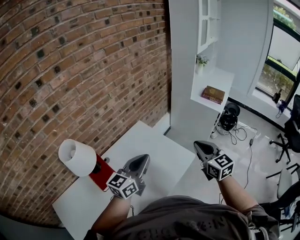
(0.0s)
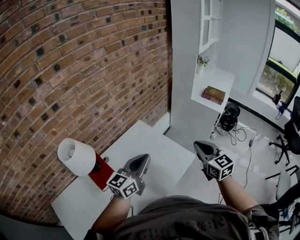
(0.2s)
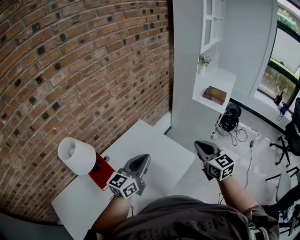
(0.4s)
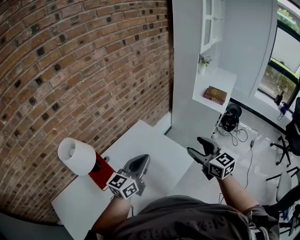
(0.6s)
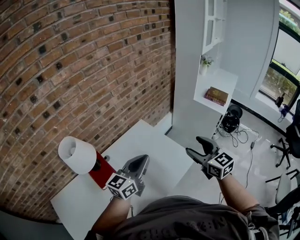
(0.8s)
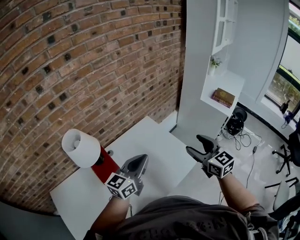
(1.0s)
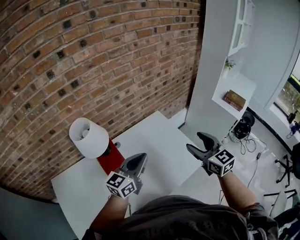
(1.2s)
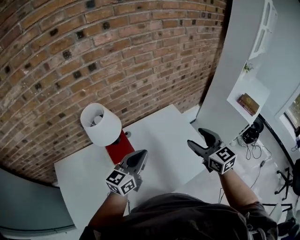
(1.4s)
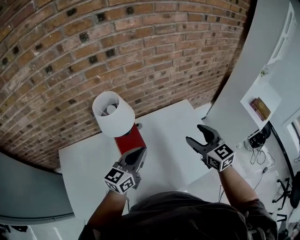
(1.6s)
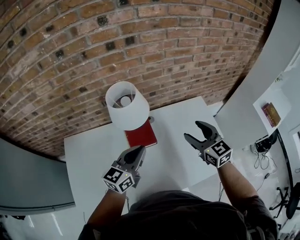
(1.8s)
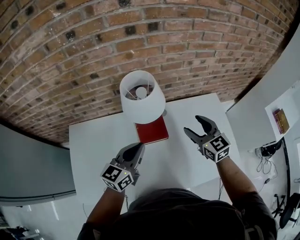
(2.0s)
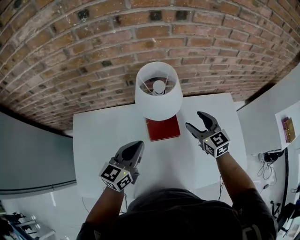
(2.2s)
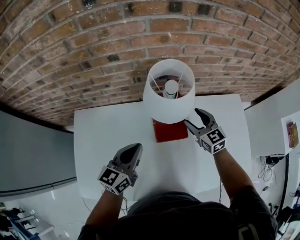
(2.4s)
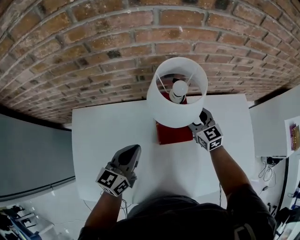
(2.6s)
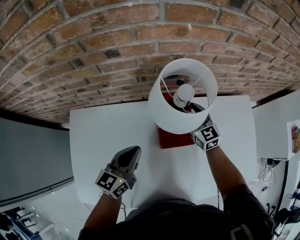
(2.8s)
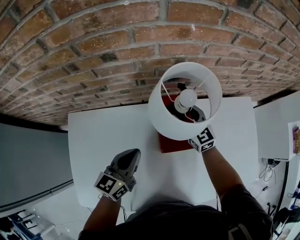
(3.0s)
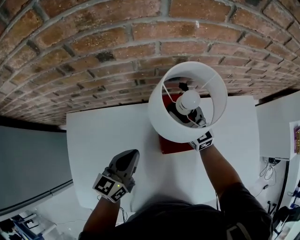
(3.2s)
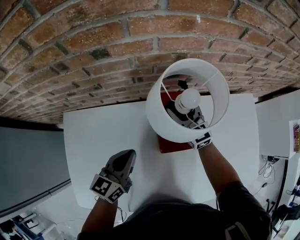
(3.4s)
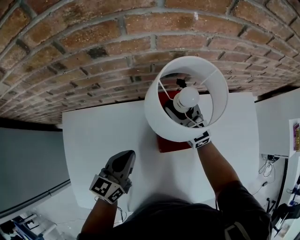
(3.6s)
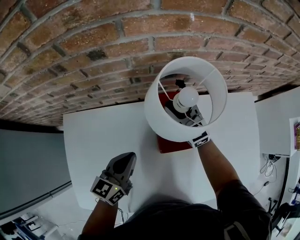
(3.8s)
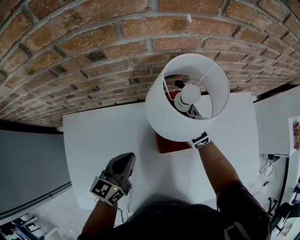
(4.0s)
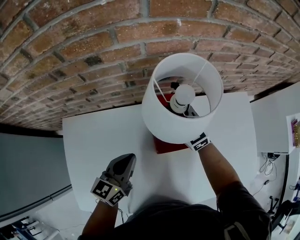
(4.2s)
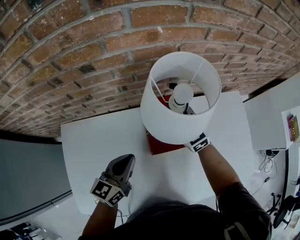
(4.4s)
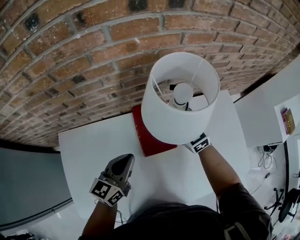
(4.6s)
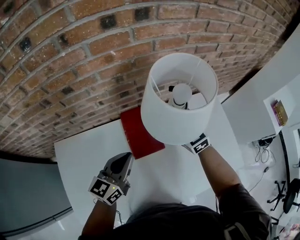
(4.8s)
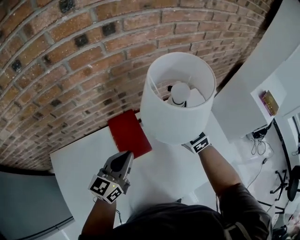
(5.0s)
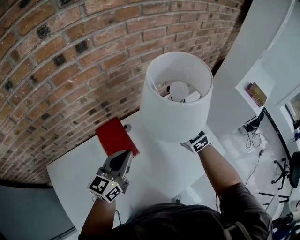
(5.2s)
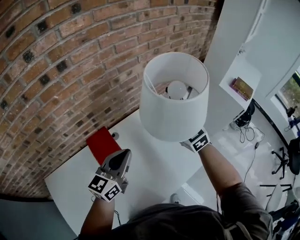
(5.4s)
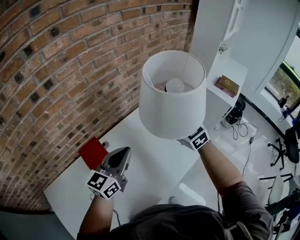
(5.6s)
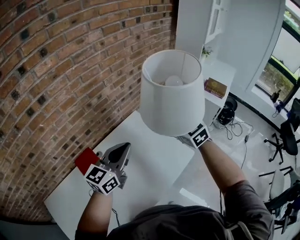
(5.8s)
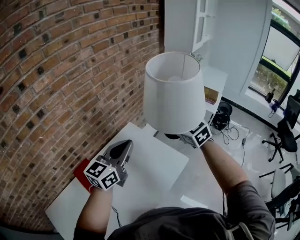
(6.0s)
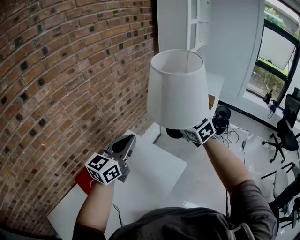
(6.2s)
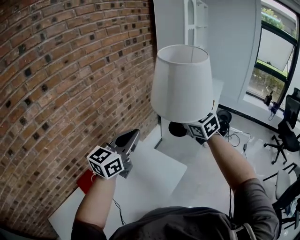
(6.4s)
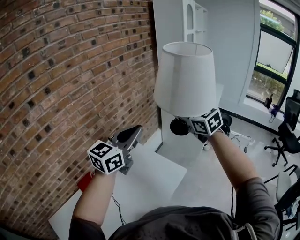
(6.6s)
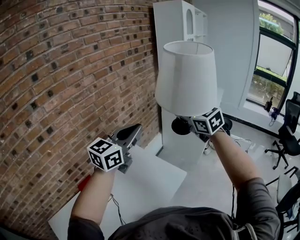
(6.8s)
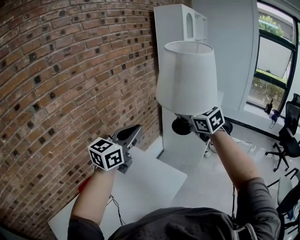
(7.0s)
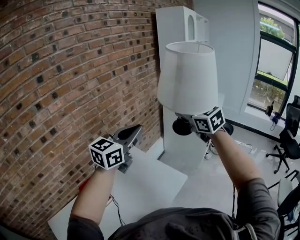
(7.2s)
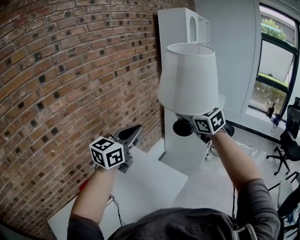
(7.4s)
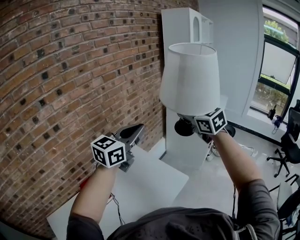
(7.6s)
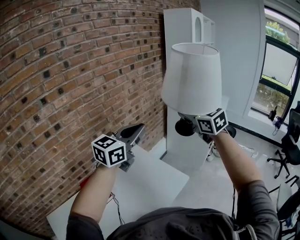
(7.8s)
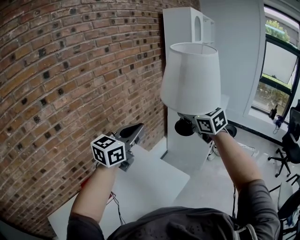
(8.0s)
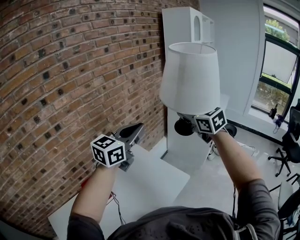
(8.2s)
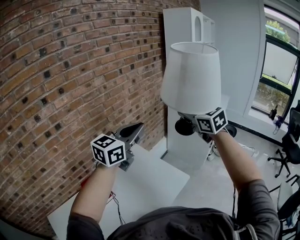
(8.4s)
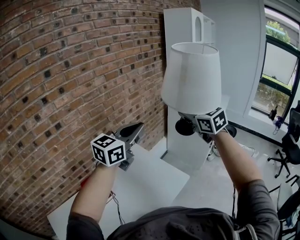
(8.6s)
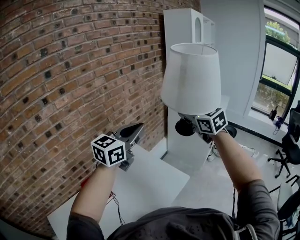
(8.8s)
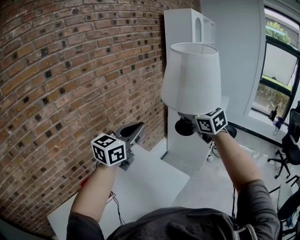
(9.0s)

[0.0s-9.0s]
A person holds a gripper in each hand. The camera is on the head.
0.0s to 1.6s: The right gripper moves some 25 cm, swivels roughly 30 degrees, and opens up, while the left gripper shifts by some 20 cm, and rotates some 30 degrees.
1.6s to 3.0s: The left gripper goes some 30 cm to the left and downward, and swivels some 20 degrees. Meanwhile the right gripper goes approximately 50 cm to the left, forward and downward.
3.0s to 4.4s: The right gripper is displaced upward by approximately 5 cm, and closes up.
4.4s to 6.0s: The two grippers travel together, about 50 cm. The left gripper rotates approximately 50 degrees. Meanwhile the right gripper swivels about 40 degrees.
6.0s to 7.6s: The grippers both shift upward and to the right by approximately 20 cm.
7.6s to 9.0s: Both grippers stay put.

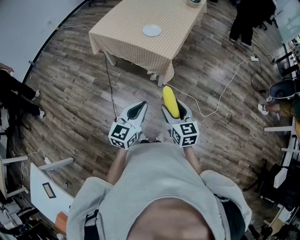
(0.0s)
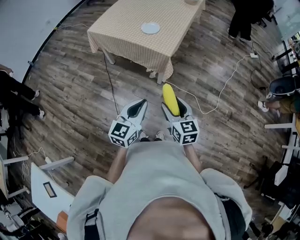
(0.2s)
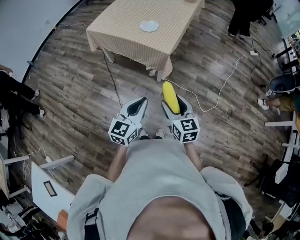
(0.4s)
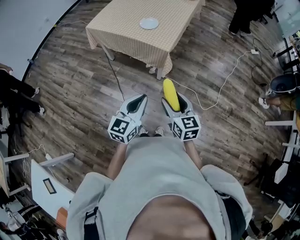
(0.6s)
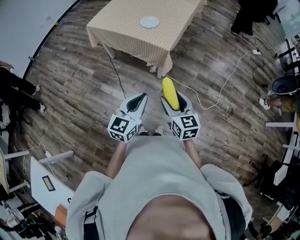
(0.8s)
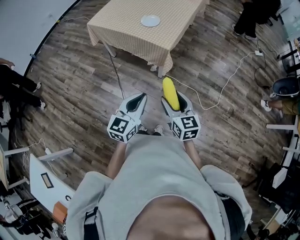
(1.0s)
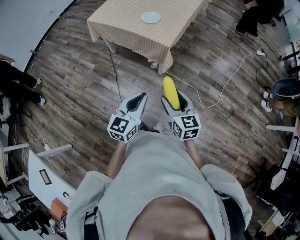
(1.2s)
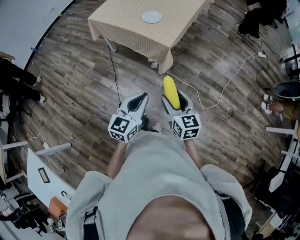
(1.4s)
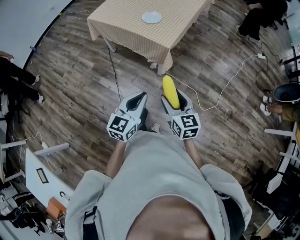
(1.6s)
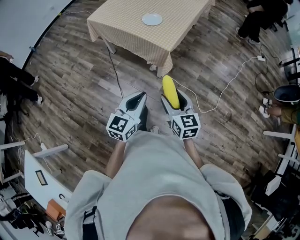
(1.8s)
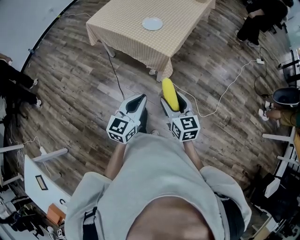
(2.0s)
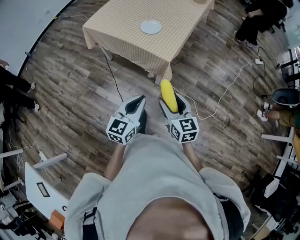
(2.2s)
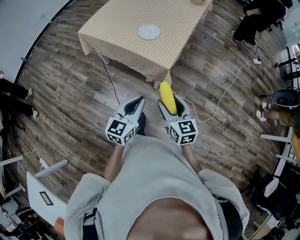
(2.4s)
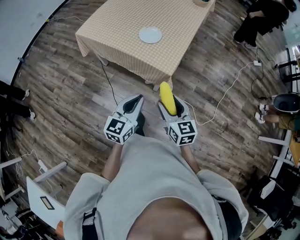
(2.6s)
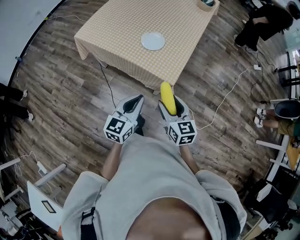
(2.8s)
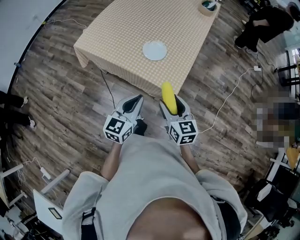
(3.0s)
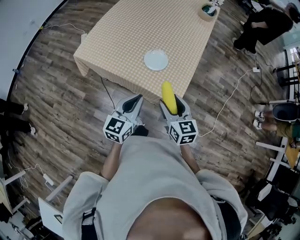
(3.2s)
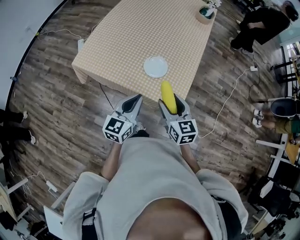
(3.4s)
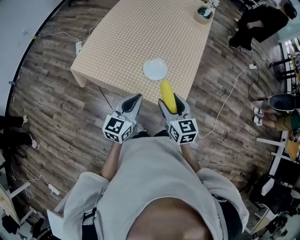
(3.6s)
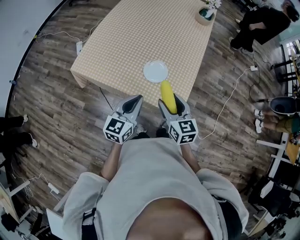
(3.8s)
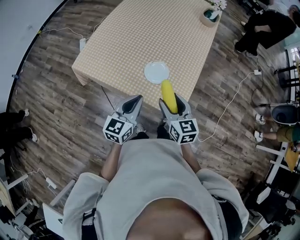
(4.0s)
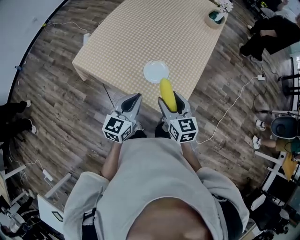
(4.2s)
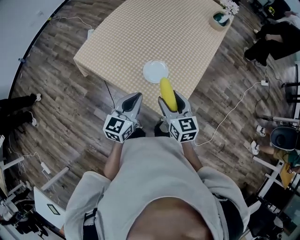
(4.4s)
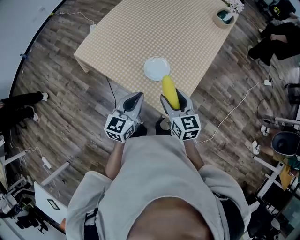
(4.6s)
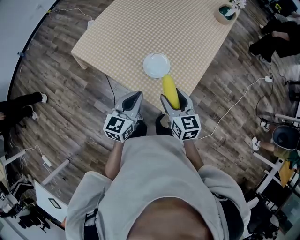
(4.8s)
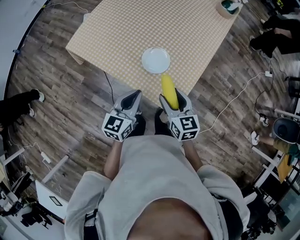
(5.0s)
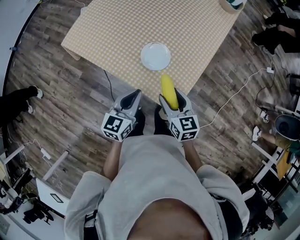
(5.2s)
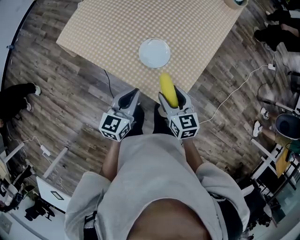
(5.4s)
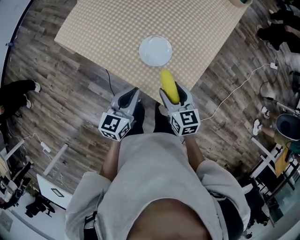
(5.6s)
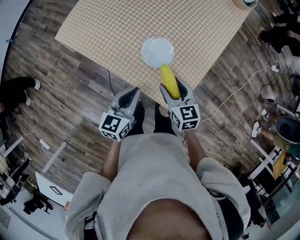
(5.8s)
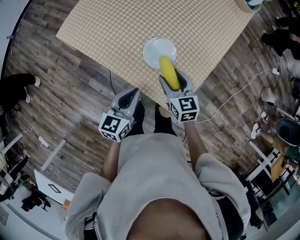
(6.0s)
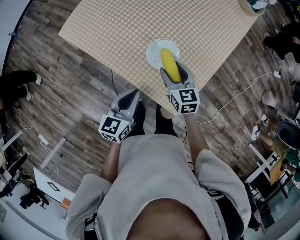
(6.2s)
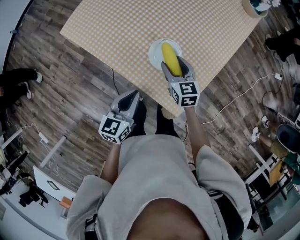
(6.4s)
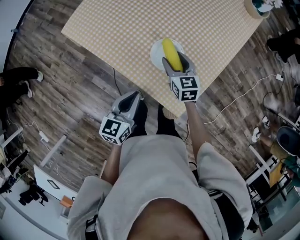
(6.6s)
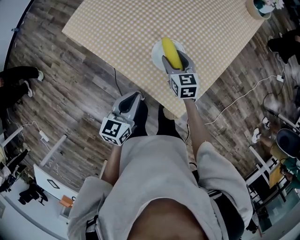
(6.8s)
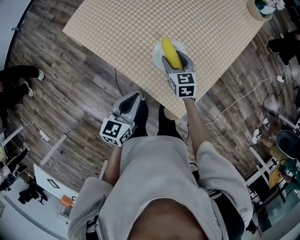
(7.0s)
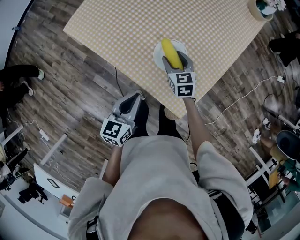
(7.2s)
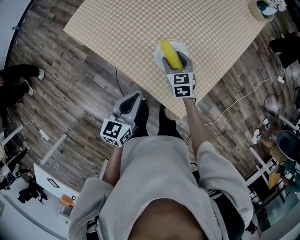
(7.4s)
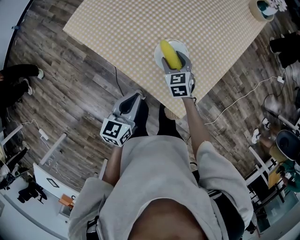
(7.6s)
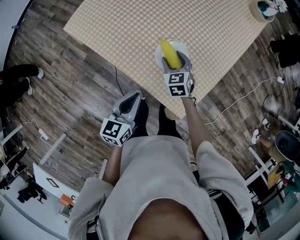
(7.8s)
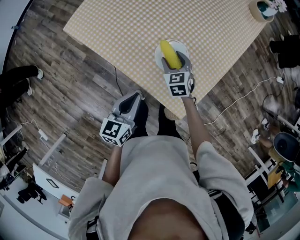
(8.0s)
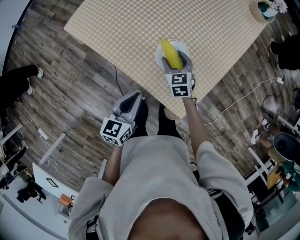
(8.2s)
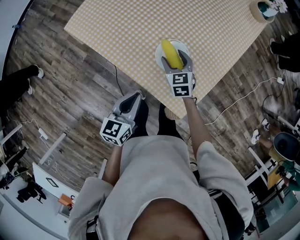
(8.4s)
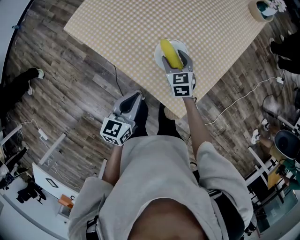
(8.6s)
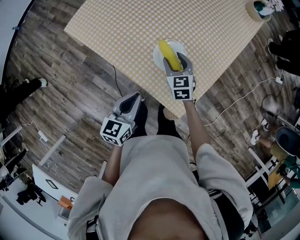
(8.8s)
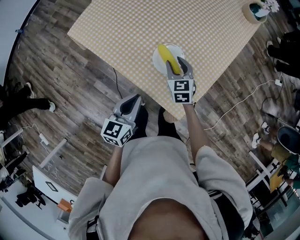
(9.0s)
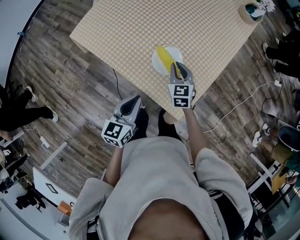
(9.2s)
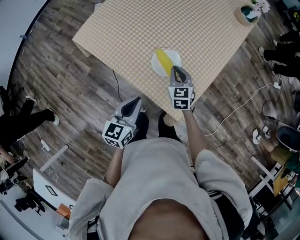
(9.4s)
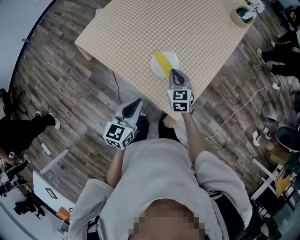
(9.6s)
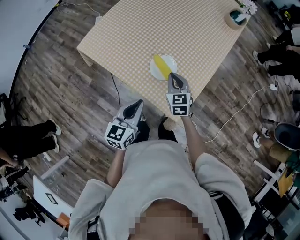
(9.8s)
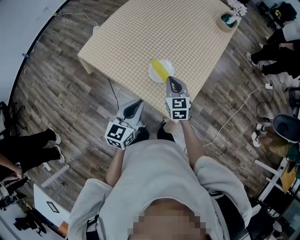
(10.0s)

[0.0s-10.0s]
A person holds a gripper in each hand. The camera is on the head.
0.0s to 1.4s: The right gripper moves about 5 cm; the left gripper travels to the right by about 5 cm.
1.4s to 2.8s: Both grippers move forward, approximately 25 cm.
2.8s to 4.2s: The grippers both shift forward by roughly 25 cm.
4.2s to 5.8s: The two grippers go roughly 10 cm downward.
5.8s to 7.2s: The right gripper moves forward and downward, about 15 cm.
7.2s to 8.6s: The grippers move only a little.
8.6s to 10.0s: The left gripper is displaced upward by approximately 10 cm, while the right gripper is displaced upward and backward by some 15 cm, and closes up.

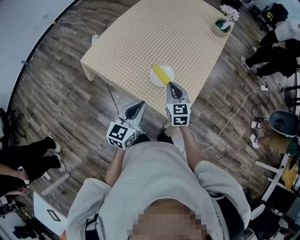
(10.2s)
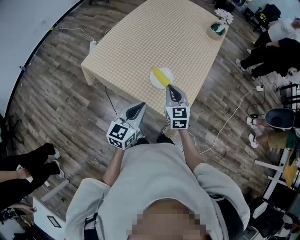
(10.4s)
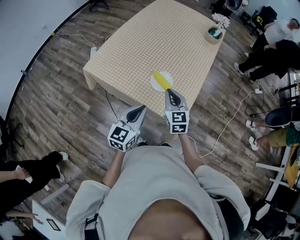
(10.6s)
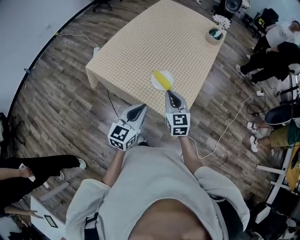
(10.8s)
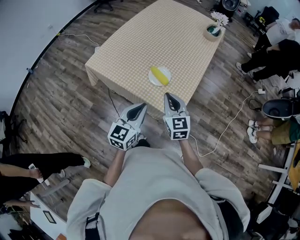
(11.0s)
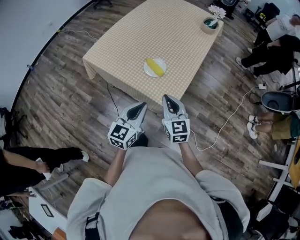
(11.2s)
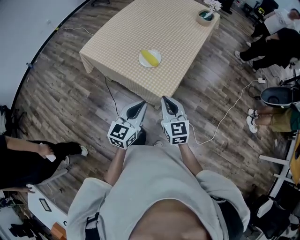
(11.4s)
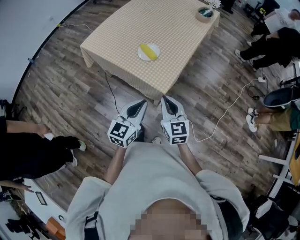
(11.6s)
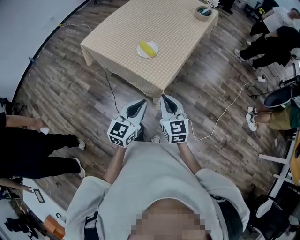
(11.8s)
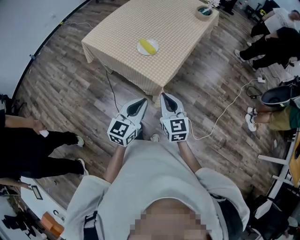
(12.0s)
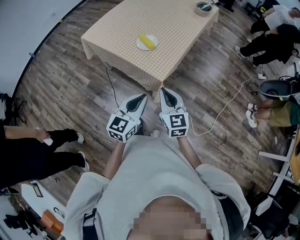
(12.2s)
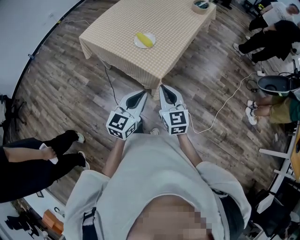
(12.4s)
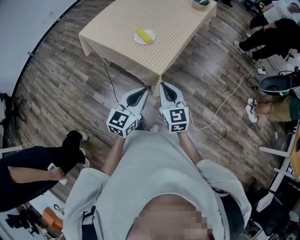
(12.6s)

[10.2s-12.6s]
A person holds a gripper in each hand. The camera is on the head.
10.2s to 11.4s: The grippers both shift backward and to the right by roughly 20 cm.
11.4s to 12.6s: The right gripper moves backward, about 10 cm; the left gripper travels backward and to the right by some 10 cm.

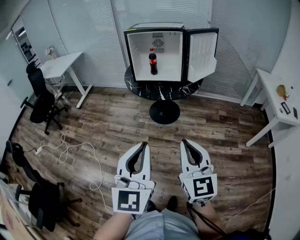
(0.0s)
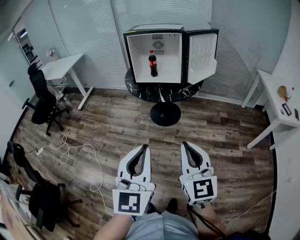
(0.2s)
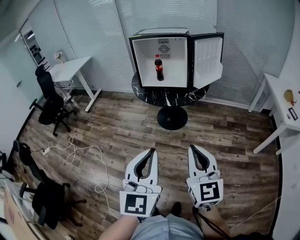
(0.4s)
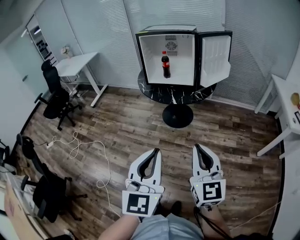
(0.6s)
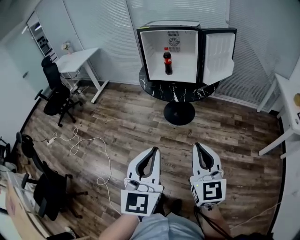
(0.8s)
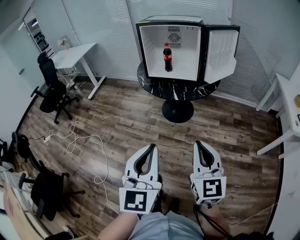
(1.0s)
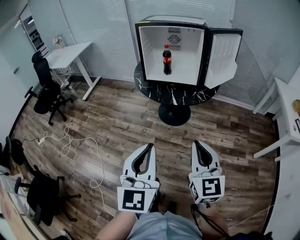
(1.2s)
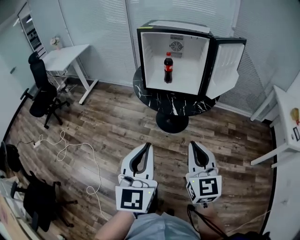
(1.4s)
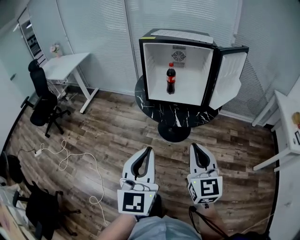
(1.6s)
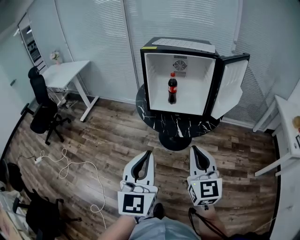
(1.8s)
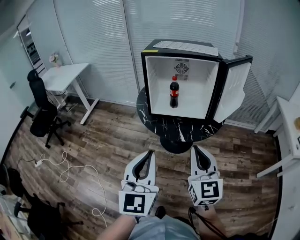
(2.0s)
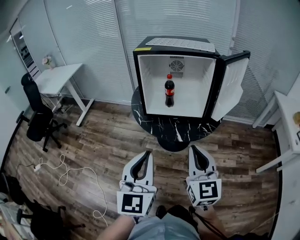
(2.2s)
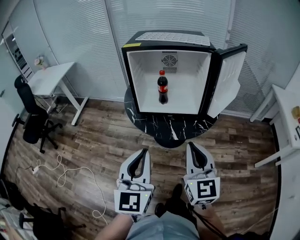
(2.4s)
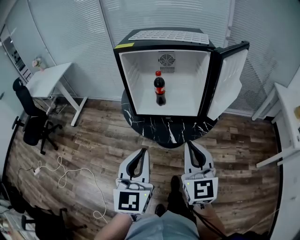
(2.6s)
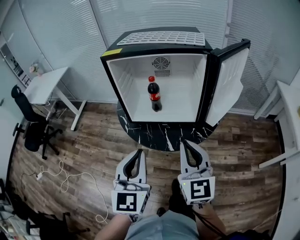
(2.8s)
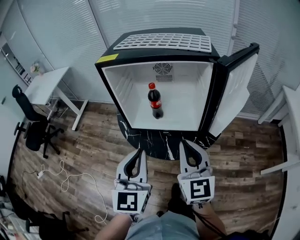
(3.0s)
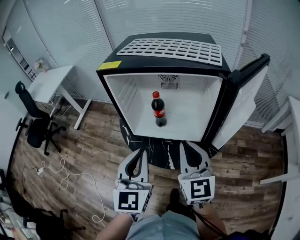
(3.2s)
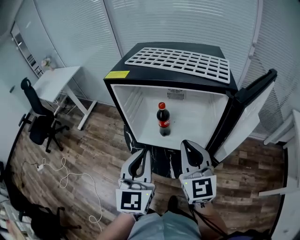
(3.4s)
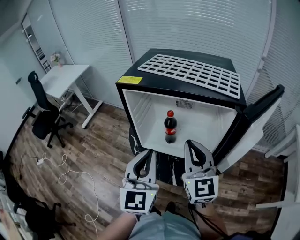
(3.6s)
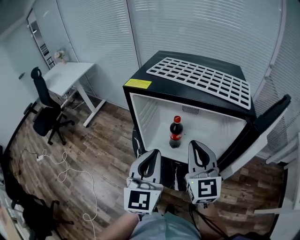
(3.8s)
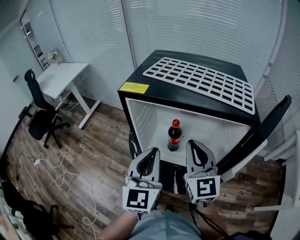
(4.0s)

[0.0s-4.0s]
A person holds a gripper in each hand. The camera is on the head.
0.0s to 1.4s: The grippers both shift forward by some 20 cm.
1.4s to 2.6s: Both grippers travel together forward, some 20 cm.
2.6s to 4.0s: The two grippers go about 30 cm forward.
